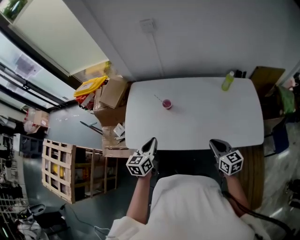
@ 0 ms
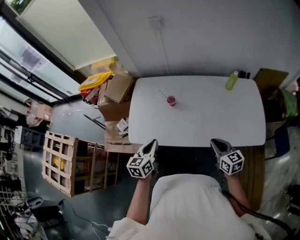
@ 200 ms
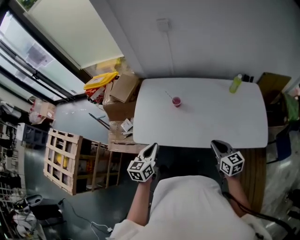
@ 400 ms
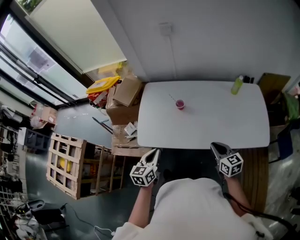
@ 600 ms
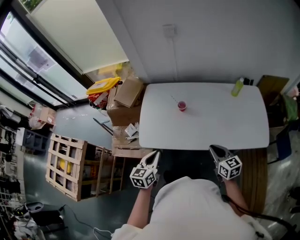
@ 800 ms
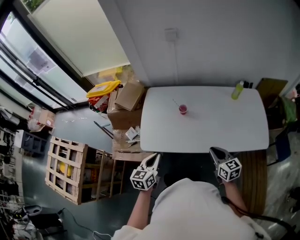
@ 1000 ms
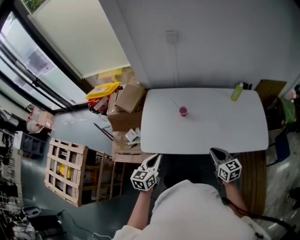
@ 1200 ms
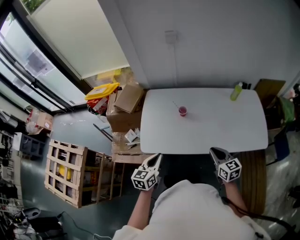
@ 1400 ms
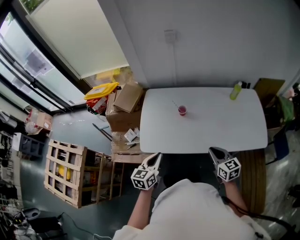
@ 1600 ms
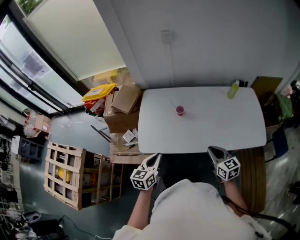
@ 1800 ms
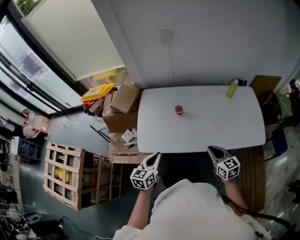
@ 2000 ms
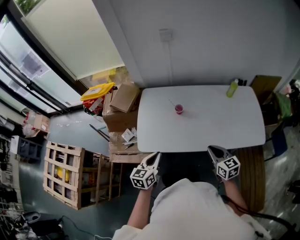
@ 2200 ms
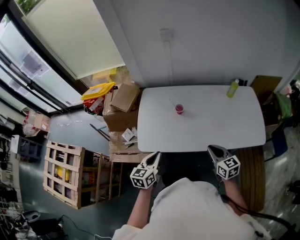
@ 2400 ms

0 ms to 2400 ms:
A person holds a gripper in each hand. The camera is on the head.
0 ms to 1200 ms: The left gripper shifts about 10 cm to the left and backward. Meanwhile the right gripper heads to the left, covering some 10 cm.
1200 ms to 2400 ms: The two grippers keep their place.

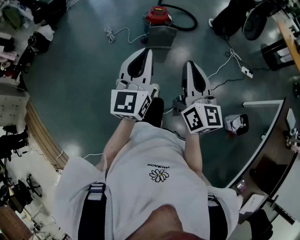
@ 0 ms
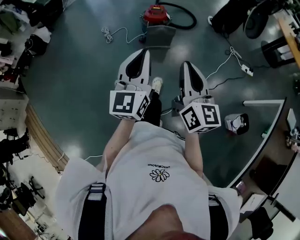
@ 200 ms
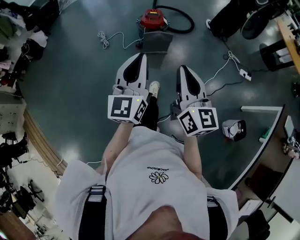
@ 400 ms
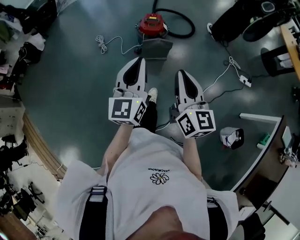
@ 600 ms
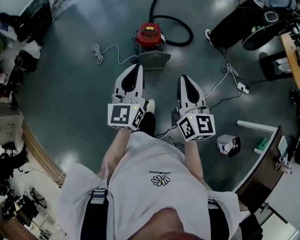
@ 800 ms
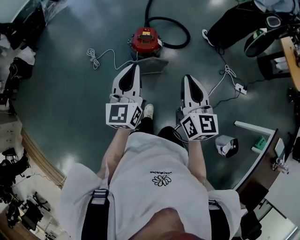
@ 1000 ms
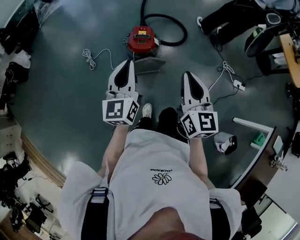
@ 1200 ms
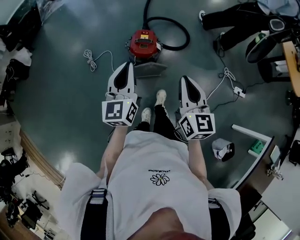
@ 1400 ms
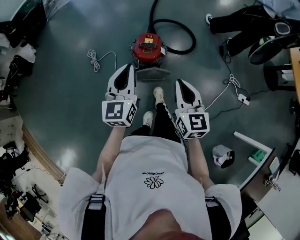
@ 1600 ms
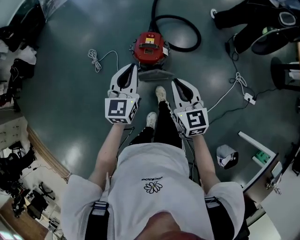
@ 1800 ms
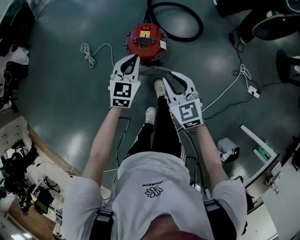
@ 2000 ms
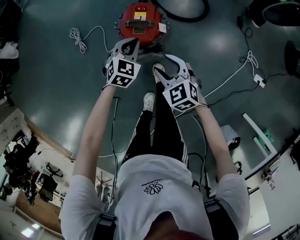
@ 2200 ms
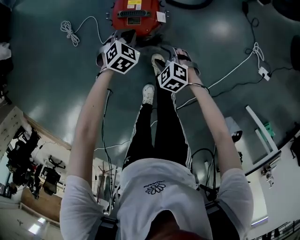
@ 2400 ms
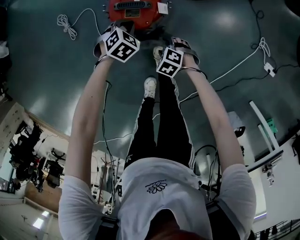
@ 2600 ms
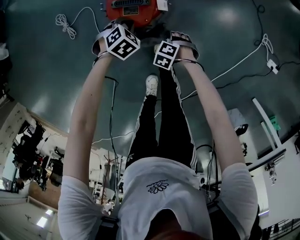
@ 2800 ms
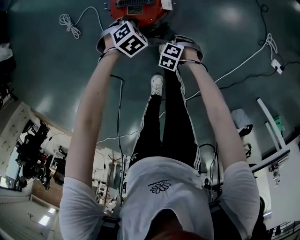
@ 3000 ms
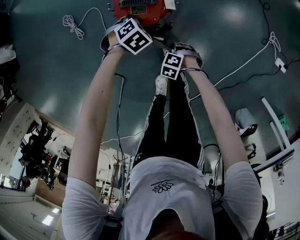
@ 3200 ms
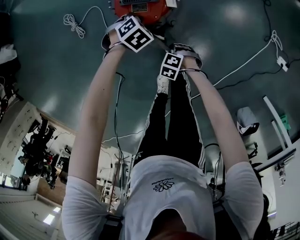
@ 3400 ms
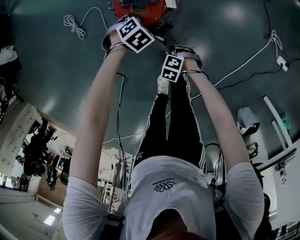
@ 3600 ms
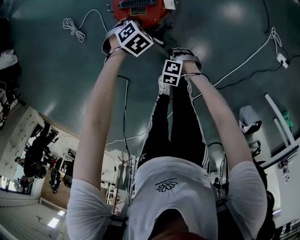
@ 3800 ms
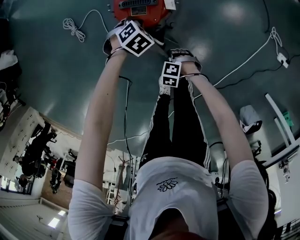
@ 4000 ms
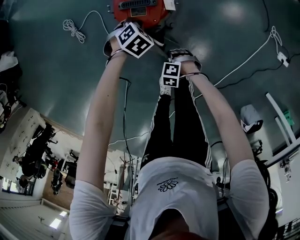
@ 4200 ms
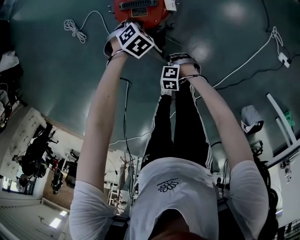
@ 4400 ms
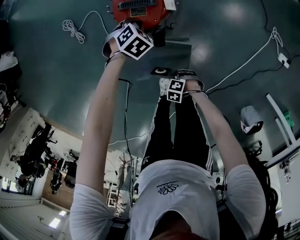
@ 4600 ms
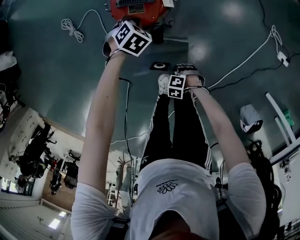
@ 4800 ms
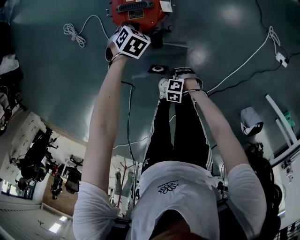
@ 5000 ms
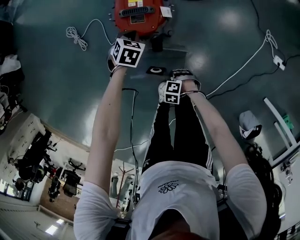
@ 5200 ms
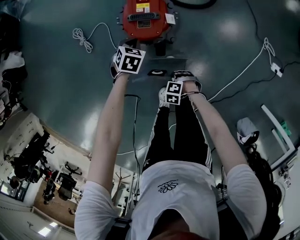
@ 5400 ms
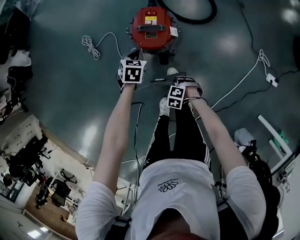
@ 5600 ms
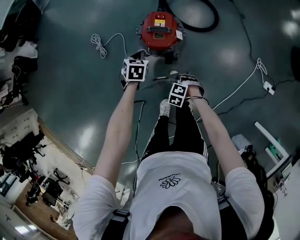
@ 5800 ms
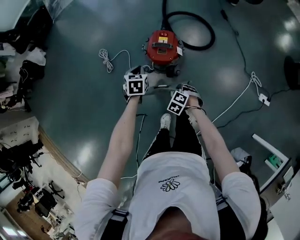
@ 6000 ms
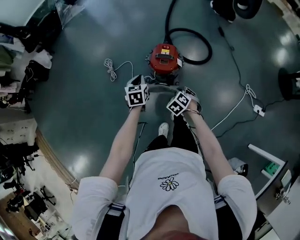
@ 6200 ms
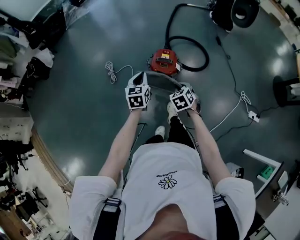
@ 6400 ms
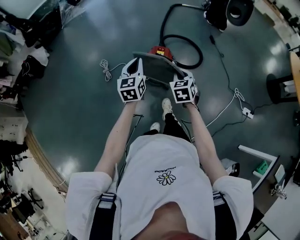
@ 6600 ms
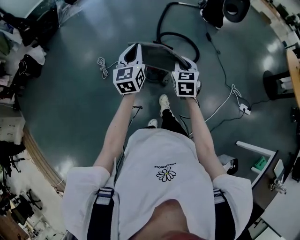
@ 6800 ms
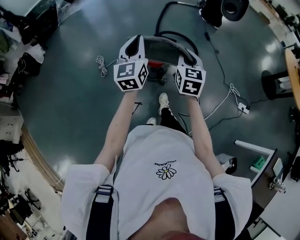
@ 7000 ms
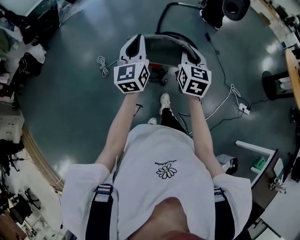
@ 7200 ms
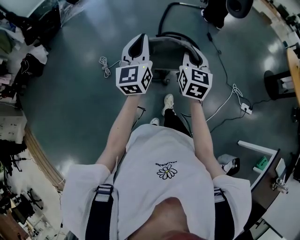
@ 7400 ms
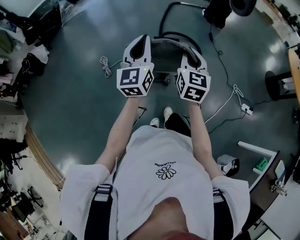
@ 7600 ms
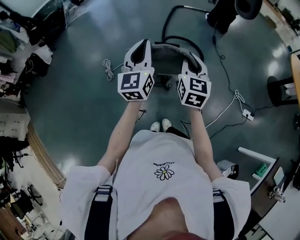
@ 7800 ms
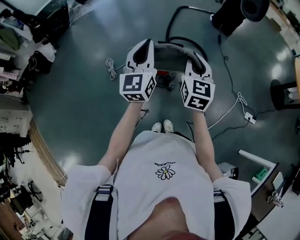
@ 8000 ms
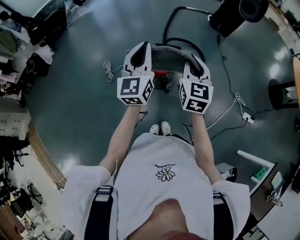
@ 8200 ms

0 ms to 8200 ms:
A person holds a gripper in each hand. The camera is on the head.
0 ms to 1600 ms: The two grippers travel together, forward, roughly 60 cm. The right gripper rotates some 30 degrees.
1600 ms to 3200 ms: The two grippers go about 60 cm downward. The right gripper tips its fingers downward by about 70 degrees, and opens and closes again, while the left gripper tips its fingers downward by some 70 degrees.
3200 ms to 5000 ms: The right gripper changes place by about 15 cm.
5000 ms to 6600 ms: The two grippers go approximately 50 cm upward. The left gripper angles its fingers upward, by approximately 60 degrees, while the right gripper angles its fingers upward, by some 40 degrees.
6600 ms to 8200 ms: Both grippers move upward, some 20 cm. The right gripper swivels about 30 degrees. Meanwhile the left gripper changes its angle by roughly 20 degrees.

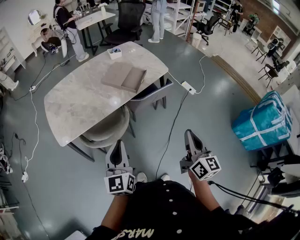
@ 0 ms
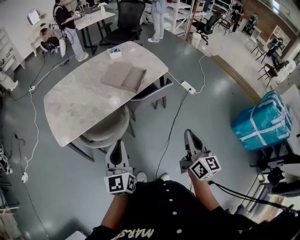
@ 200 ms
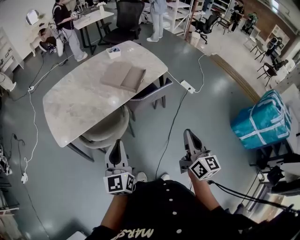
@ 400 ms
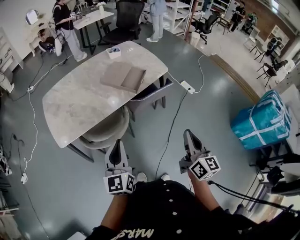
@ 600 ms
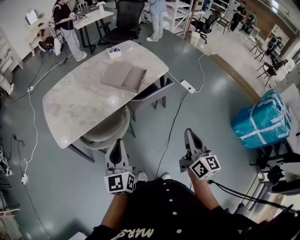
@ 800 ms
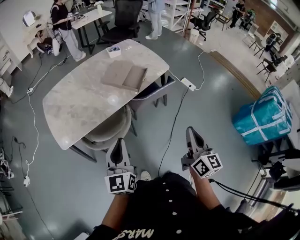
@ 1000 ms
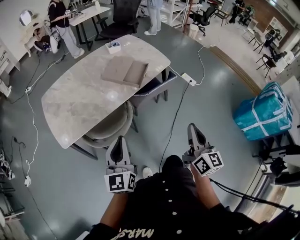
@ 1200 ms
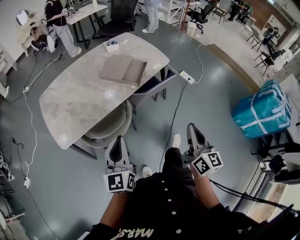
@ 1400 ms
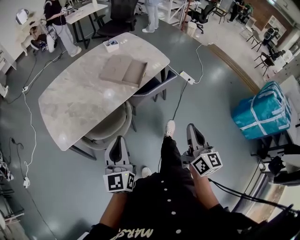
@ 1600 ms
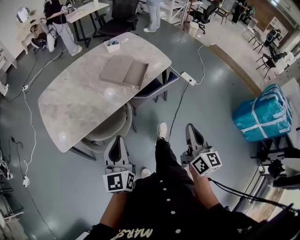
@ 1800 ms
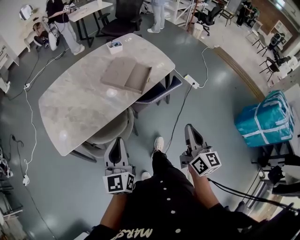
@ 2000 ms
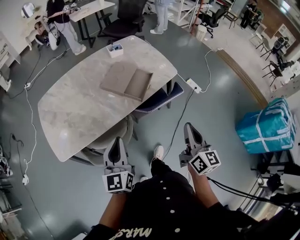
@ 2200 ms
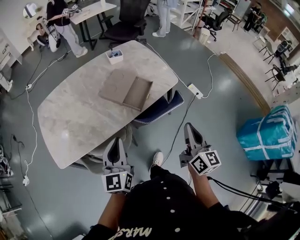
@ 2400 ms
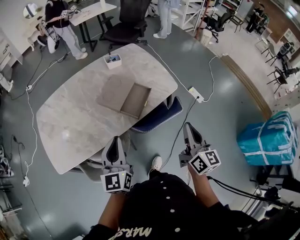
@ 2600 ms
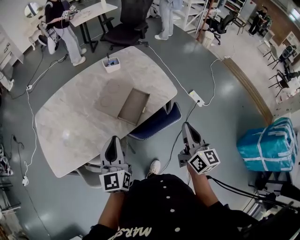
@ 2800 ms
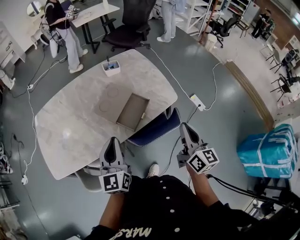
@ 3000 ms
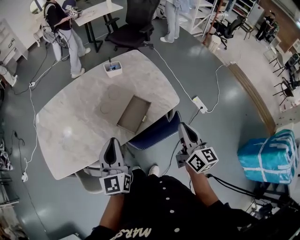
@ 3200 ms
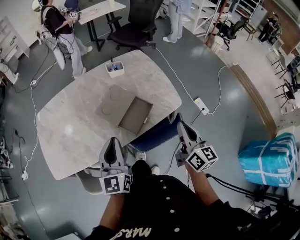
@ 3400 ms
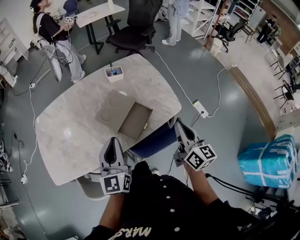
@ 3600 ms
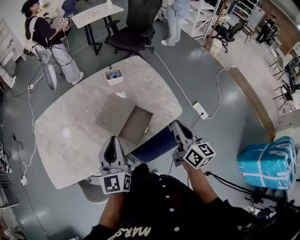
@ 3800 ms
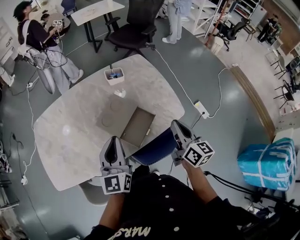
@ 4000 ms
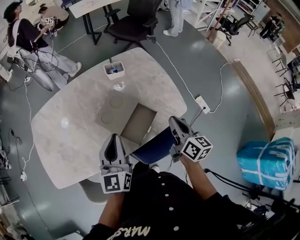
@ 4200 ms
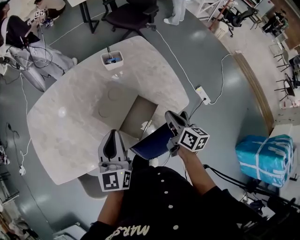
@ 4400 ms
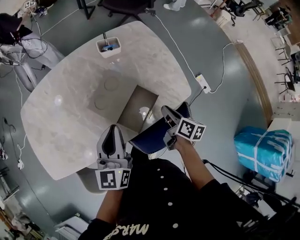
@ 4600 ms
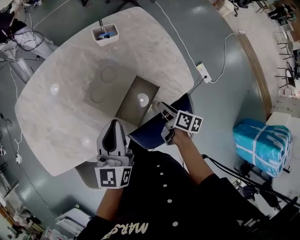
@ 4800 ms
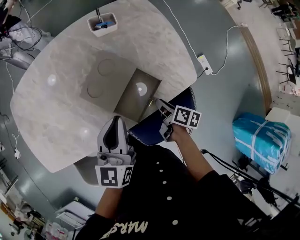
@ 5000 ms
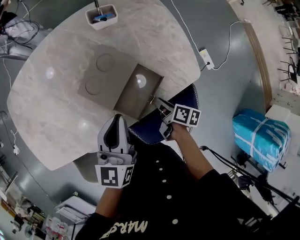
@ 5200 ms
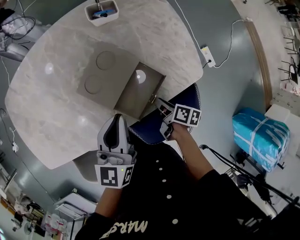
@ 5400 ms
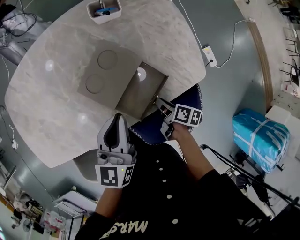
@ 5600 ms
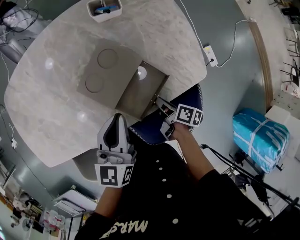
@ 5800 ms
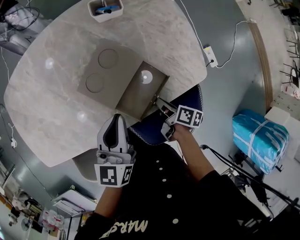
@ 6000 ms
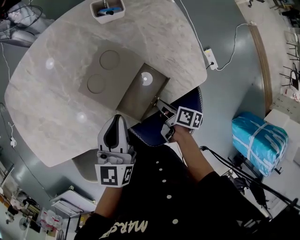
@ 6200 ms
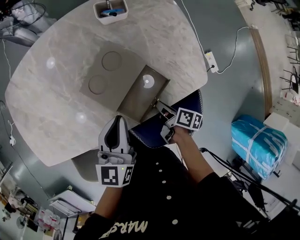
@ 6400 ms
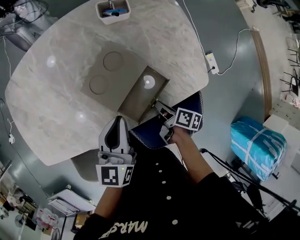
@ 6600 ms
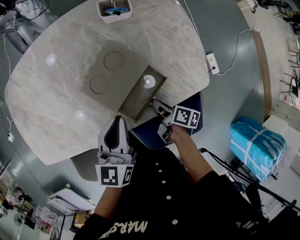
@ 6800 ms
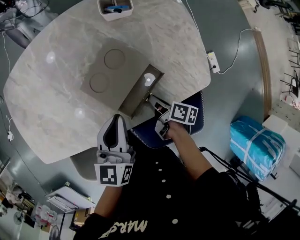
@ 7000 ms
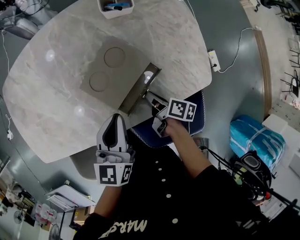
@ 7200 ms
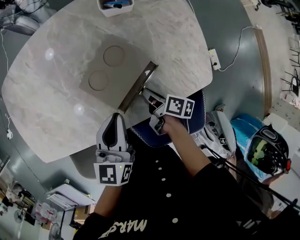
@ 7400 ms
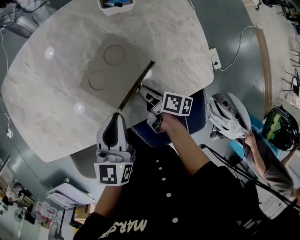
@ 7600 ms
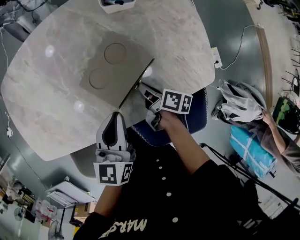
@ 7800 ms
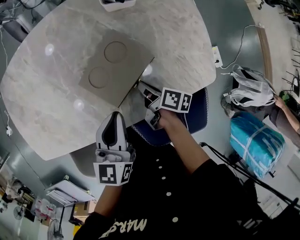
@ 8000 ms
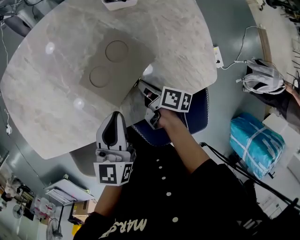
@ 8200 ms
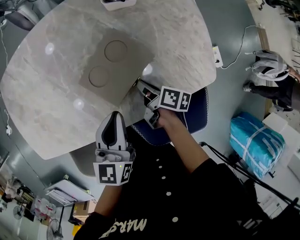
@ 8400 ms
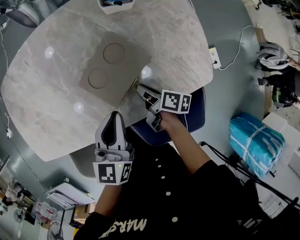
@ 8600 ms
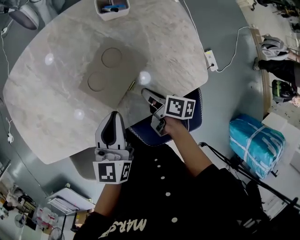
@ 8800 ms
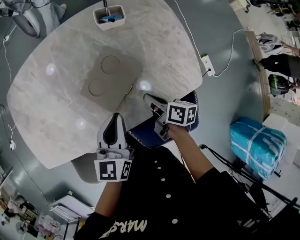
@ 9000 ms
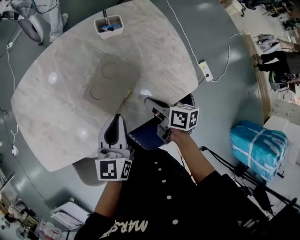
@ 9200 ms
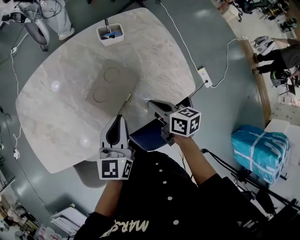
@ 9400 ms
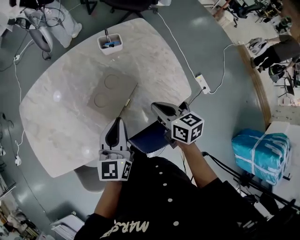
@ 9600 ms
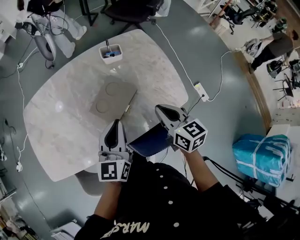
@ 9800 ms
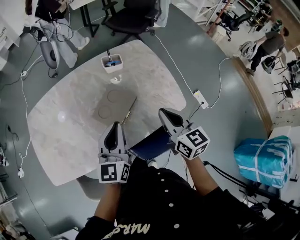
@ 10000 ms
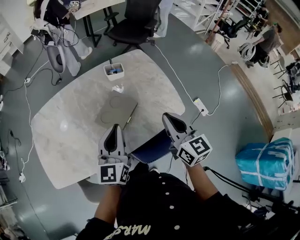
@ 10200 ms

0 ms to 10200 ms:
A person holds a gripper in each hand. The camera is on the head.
0 ms to 1400 ms: The right gripper ends up about 5 cm from where it was; the left gripper ends up approximately 5 cm from where it was.
1400 ms to 3000 ms: The two grippers go about 35 cm forward.
3000 ms to 4400 ms: The right gripper travels forward and downward by some 25 cm, and swivels approximately 30 degrees, while the left gripper heads forward, covering about 15 cm.
4400 ms to 5800 ms: The right gripper heads downward, covering some 20 cm, and changes its angle by about 40 degrees. The left gripper shifts roughly 10 cm downward.
5800 ms to 7200 ms: The right gripper shifts roughly 5 cm forward.
7200 ms to 8800 ms: There are only small adjustments of the grippers.
8800 ms to 10200 ms: The left gripper shifts approximately 15 cm upward, and rotates approximately 20 degrees. Meanwhile the right gripper goes approximately 30 cm upward, and rolls counterclockwise, seen from behind, by roughly 50 degrees.

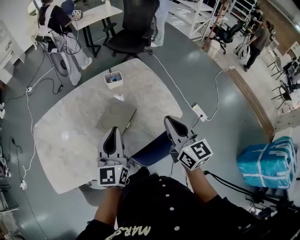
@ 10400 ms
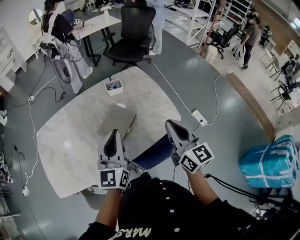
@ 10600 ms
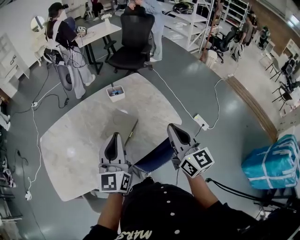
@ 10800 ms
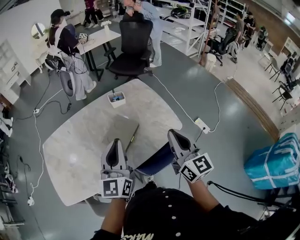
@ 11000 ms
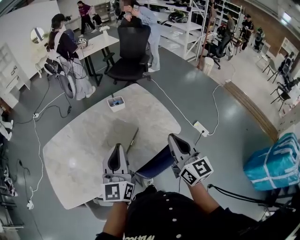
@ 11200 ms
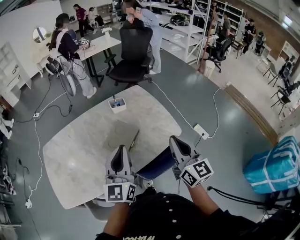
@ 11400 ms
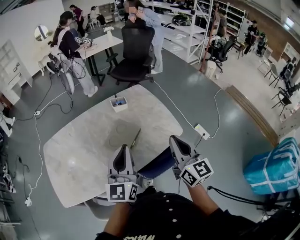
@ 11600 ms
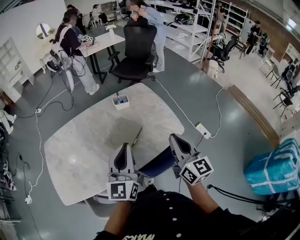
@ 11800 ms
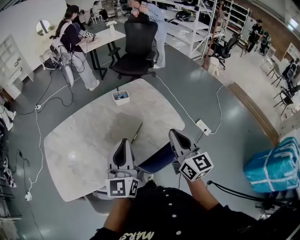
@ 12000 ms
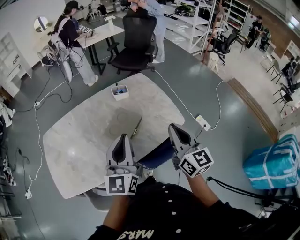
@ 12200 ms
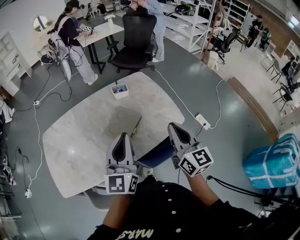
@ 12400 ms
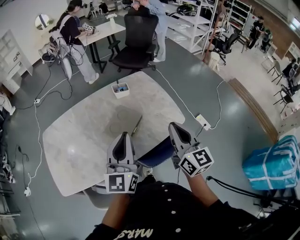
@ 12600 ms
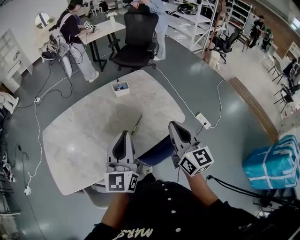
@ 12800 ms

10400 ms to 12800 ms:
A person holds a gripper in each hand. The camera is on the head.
10400 ms to 11600 ms: The left gripper goes roughly 10 cm backward and upward, while the right gripper heads backward, covering about 5 cm.
11600 ms to 12800 ms: There are only small adjustments of the grippers.
